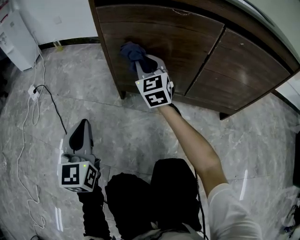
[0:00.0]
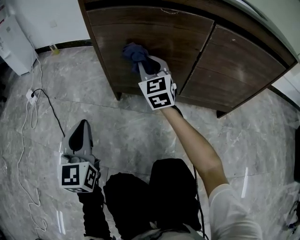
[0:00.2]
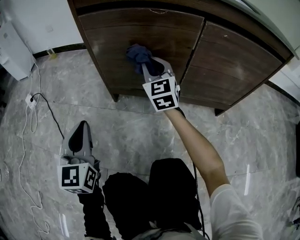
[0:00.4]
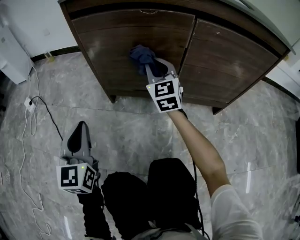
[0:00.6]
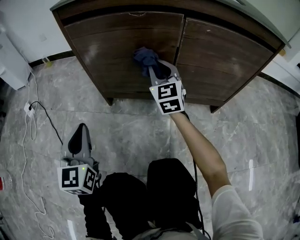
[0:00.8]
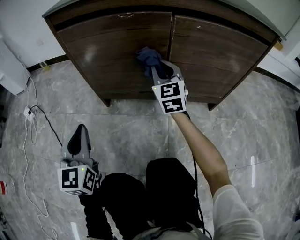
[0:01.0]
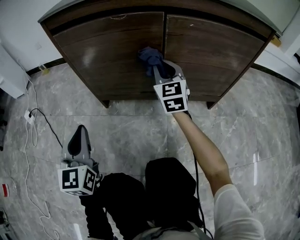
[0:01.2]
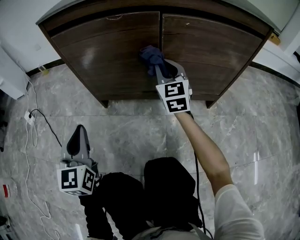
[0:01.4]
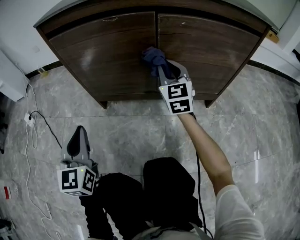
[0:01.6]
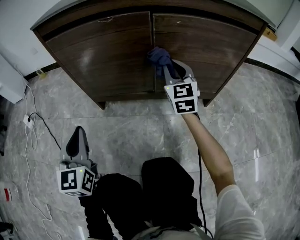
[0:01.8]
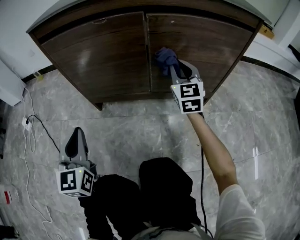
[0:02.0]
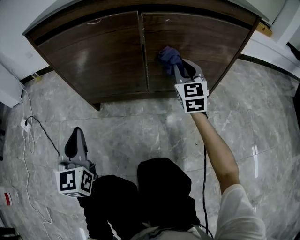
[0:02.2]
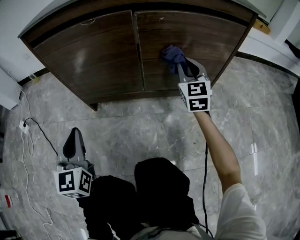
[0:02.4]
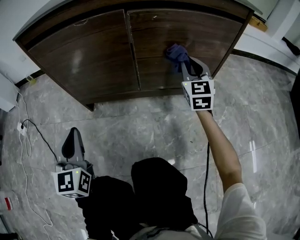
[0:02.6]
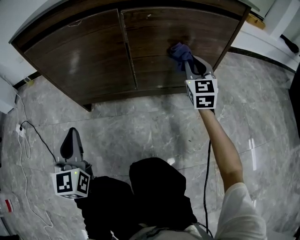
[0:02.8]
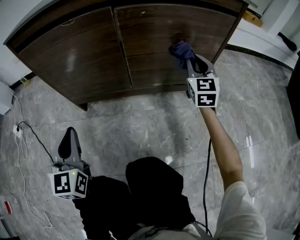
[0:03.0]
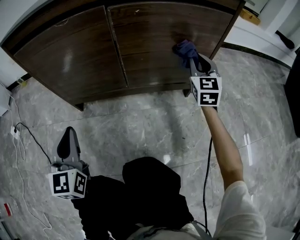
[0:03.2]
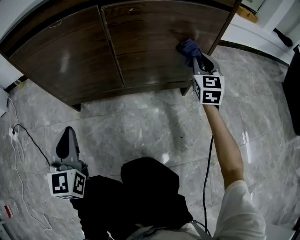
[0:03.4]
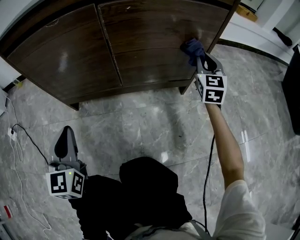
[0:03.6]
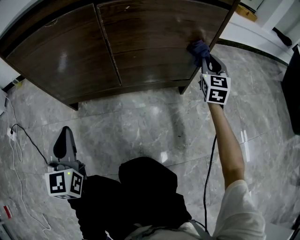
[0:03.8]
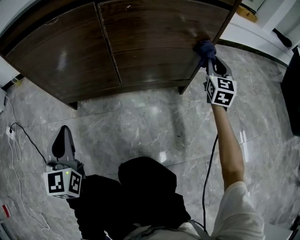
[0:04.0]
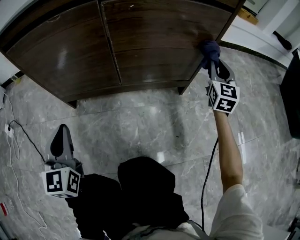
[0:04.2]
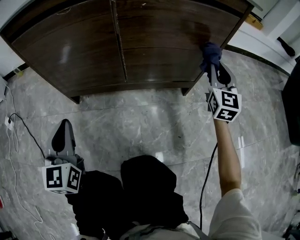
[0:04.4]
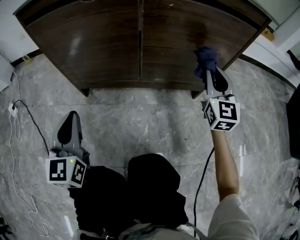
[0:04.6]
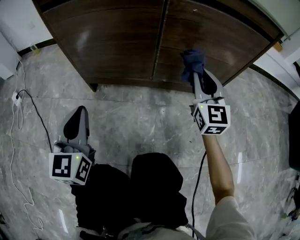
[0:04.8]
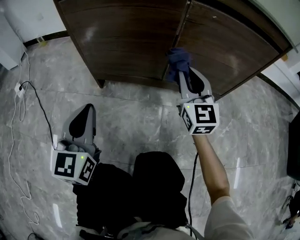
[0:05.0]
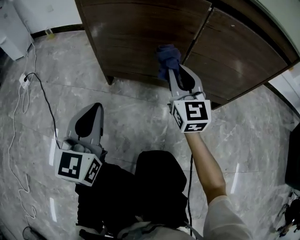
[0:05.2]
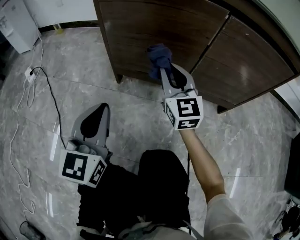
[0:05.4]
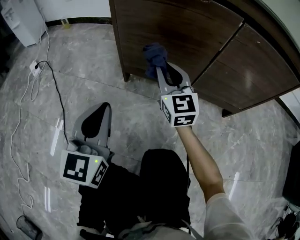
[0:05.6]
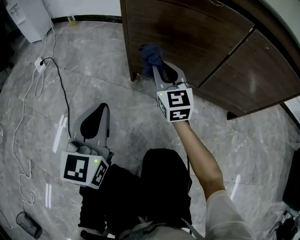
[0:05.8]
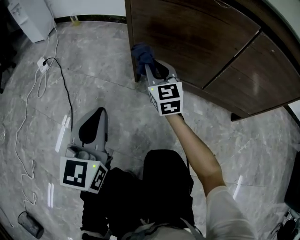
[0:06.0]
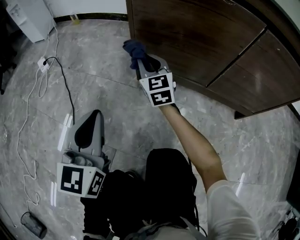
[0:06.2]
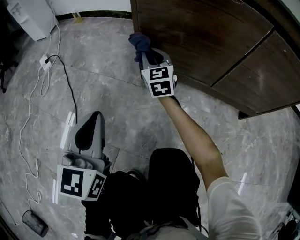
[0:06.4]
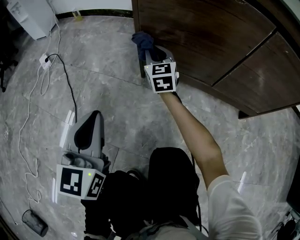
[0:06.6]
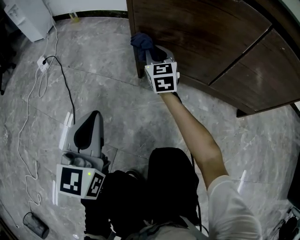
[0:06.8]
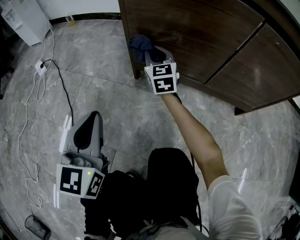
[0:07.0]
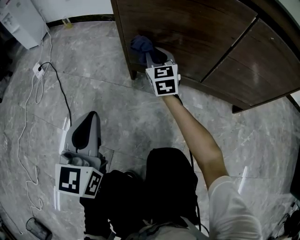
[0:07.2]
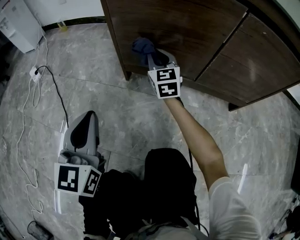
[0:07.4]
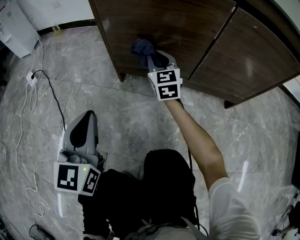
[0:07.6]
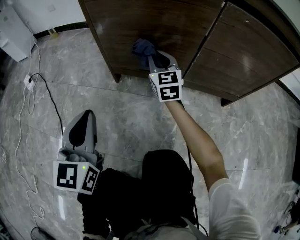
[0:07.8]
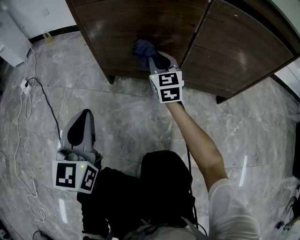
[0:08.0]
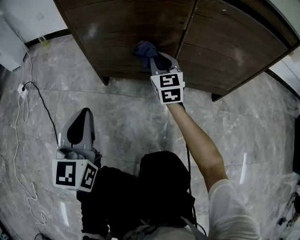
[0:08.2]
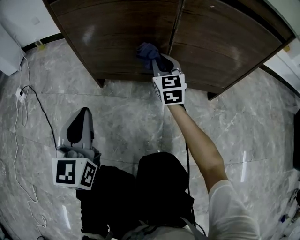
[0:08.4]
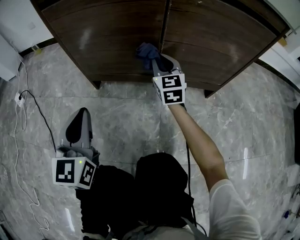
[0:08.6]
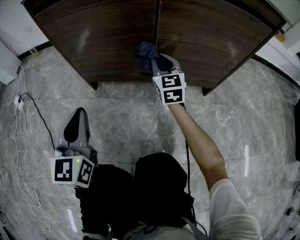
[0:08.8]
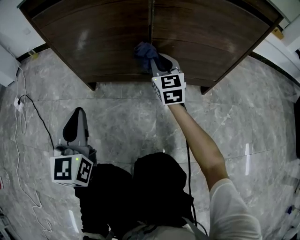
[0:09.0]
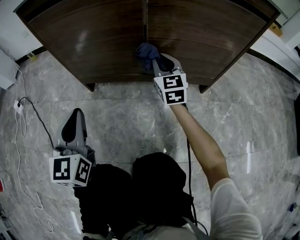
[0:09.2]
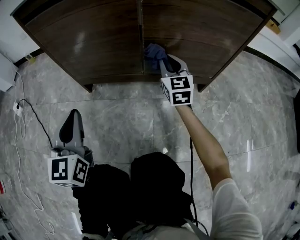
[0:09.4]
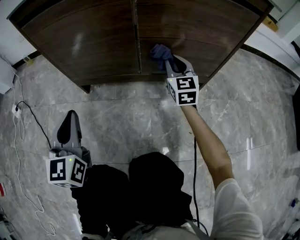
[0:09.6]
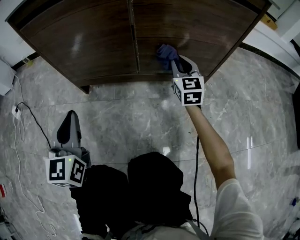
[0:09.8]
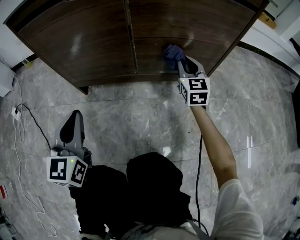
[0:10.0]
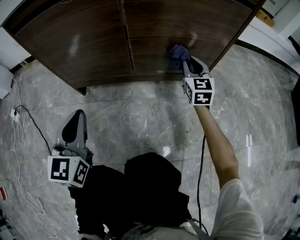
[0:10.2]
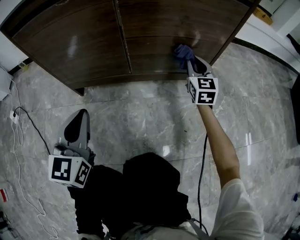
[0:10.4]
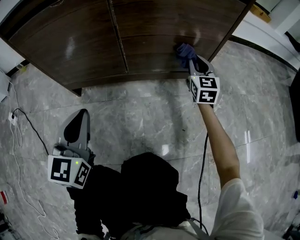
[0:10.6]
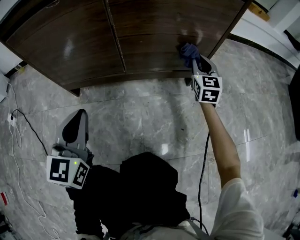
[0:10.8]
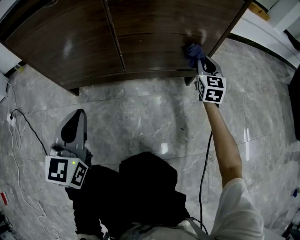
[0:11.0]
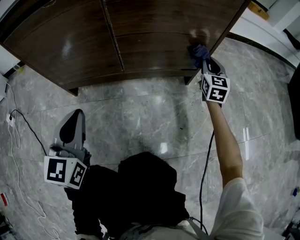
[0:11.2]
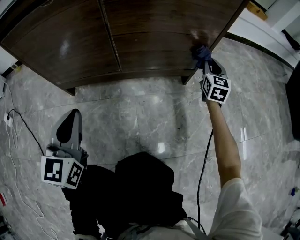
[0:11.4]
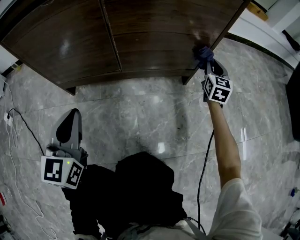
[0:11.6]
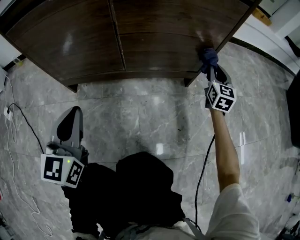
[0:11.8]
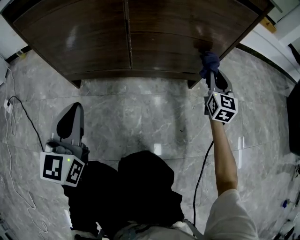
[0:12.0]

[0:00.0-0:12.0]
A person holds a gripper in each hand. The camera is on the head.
0:00.0 to 0:01.6: The right gripper travels to the right by approximately 25 cm; the left gripper goes about 10 cm to the right.
0:01.6 to 0:03.0: The right gripper goes roughly 20 cm to the right. Meanwhile the left gripper moves to the right, about 5 cm.
0:03.0 to 0:04.4: The right gripper moves to the right, roughly 10 cm.
0:04.4 to 0:06.0: The left gripper ends up roughly 15 cm from where it was, while the right gripper moves roughly 60 cm, and turns by approximately 50 degrees.
0:06.0 to 0:07.6: The right gripper goes approximately 10 cm to the right.
0:07.6 to 0:09.0: The right gripper heads to the right, covering about 20 cm; the left gripper goes about 10 cm to the right.
0:09.0 to 0:10.4: The right gripper is displaced to the right by some 25 cm. Meanwhile the left gripper goes roughly 10 cm to the right.
0:10.4 to 0:12.0: The right gripper moves to the right, roughly 10 cm.

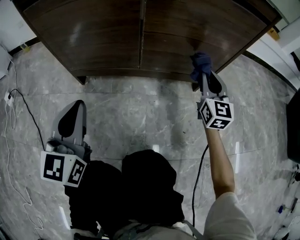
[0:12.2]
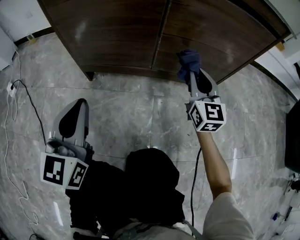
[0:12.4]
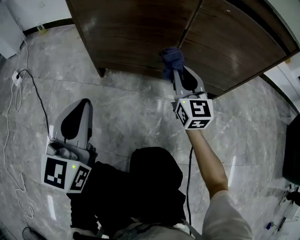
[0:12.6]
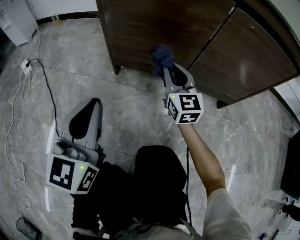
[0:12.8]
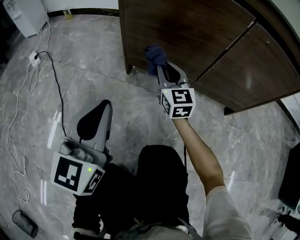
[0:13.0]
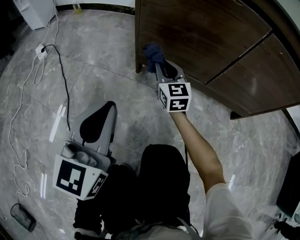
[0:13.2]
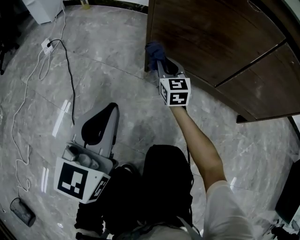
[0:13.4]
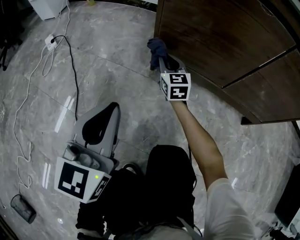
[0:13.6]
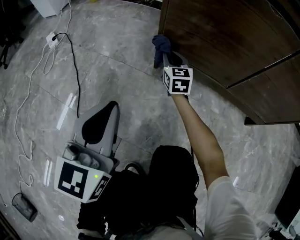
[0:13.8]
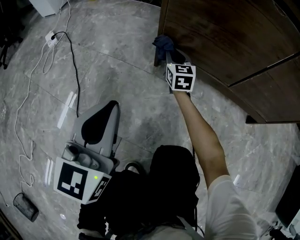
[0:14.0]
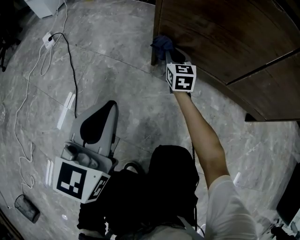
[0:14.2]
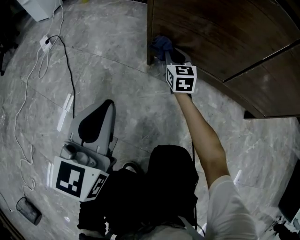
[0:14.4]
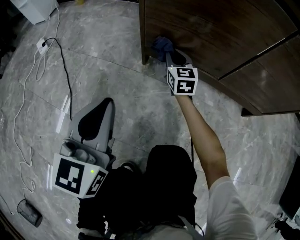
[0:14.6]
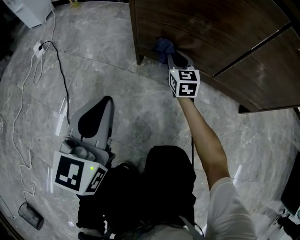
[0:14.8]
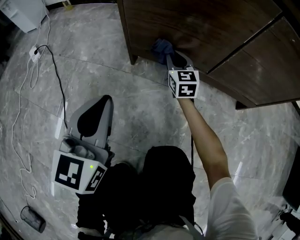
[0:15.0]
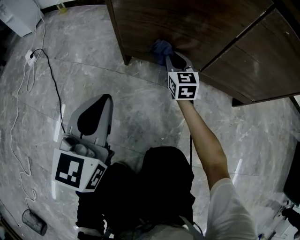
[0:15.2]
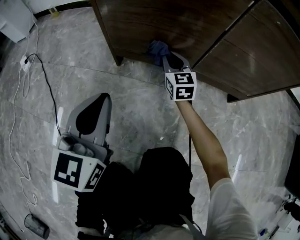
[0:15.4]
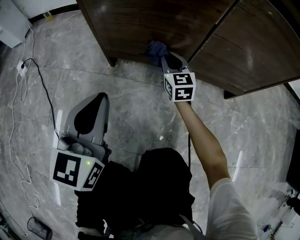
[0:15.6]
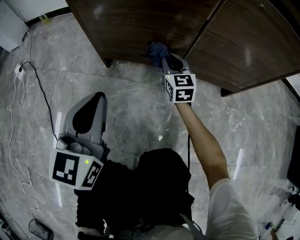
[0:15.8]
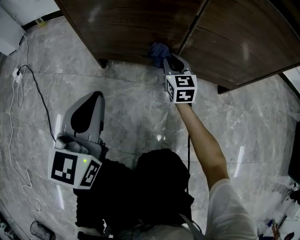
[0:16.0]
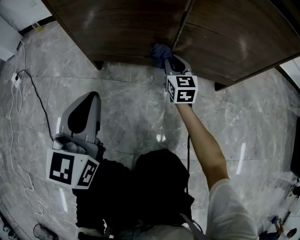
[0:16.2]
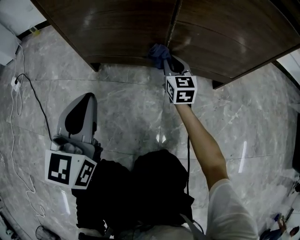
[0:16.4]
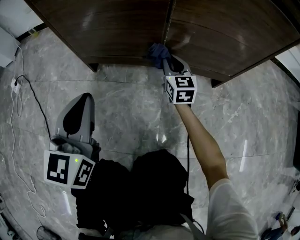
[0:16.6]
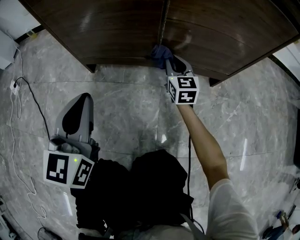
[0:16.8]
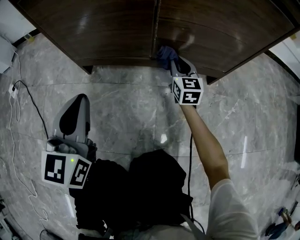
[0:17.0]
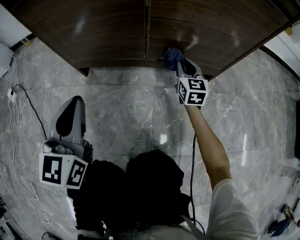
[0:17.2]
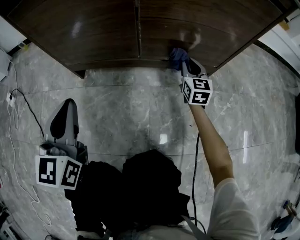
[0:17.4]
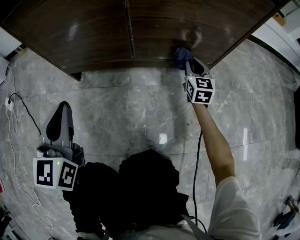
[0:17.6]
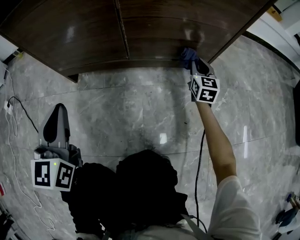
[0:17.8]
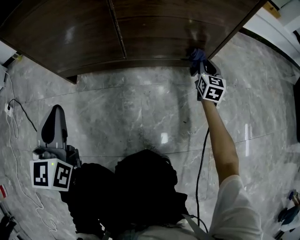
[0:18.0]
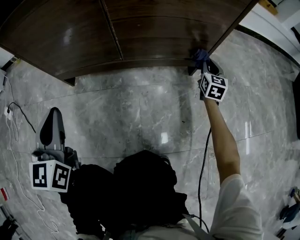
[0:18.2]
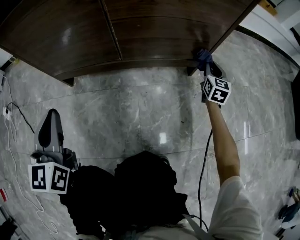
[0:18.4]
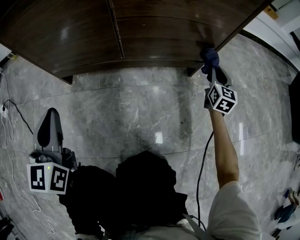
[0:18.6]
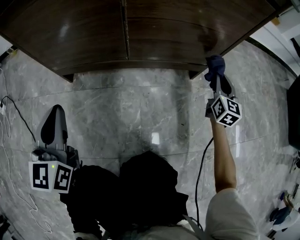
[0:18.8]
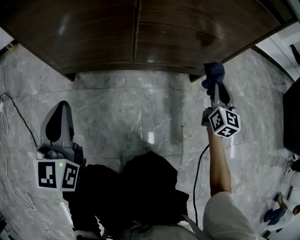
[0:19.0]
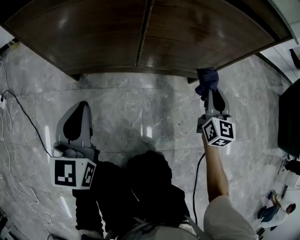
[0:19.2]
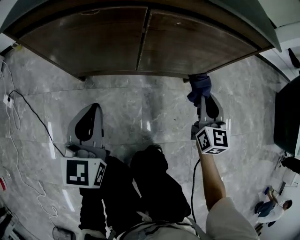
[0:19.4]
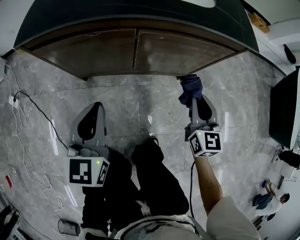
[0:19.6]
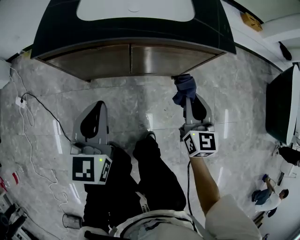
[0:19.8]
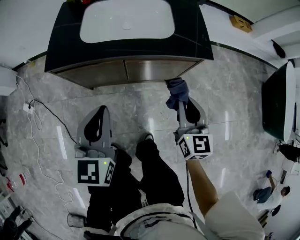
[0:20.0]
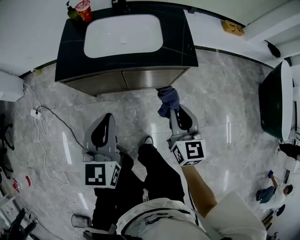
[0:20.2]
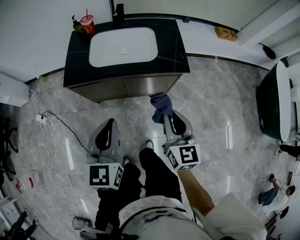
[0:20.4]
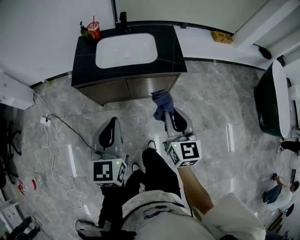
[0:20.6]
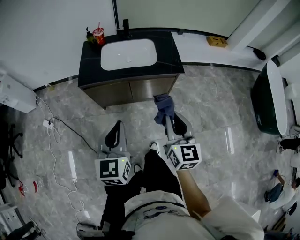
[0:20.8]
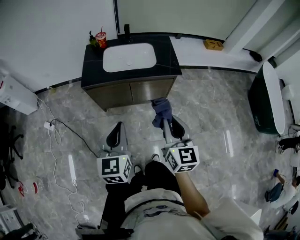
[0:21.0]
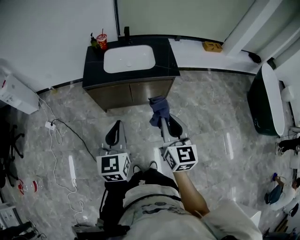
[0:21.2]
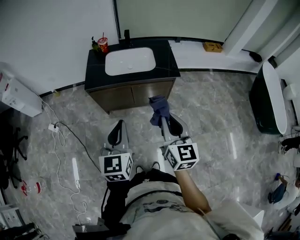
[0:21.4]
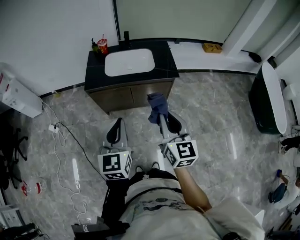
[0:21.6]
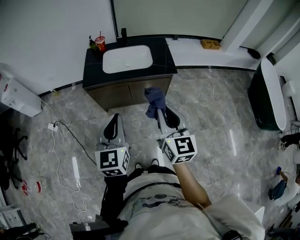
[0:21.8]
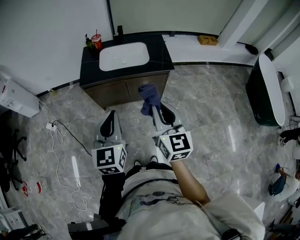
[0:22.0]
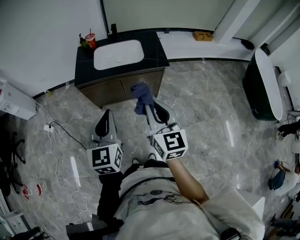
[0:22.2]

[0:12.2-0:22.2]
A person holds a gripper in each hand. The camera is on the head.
0:12.2 to 0:13.6: The left gripper heads to the left, covering about 20 cm. The right gripper goes some 50 cm to the left, and rotates about 40 degrees.
0:13.6 to 0:15.0: The left gripper is displaced to the right by approximately 5 cm, while the right gripper travels to the right by some 15 cm.
0:15.0 to 0:16.4: The right gripper is displaced to the right by some 20 cm. Meanwhile the left gripper shifts about 10 cm to the right.
0:16.4 to 0:18.0: The right gripper heads to the right, covering about 30 cm, and swivels about 30 degrees.
0:18.0 to 0:19.4: The left gripper moves upward, some 10 cm; the right gripper travels upward, backward and to the left by roughly 30 cm.
0:19.4 to 0:20.8: The grippers both shift upward by roughly 50 cm.
0:20.8 to 0:22.2: The left gripper goes roughly 5 cm upward, while the right gripper heads upward and backward, covering some 10 cm.

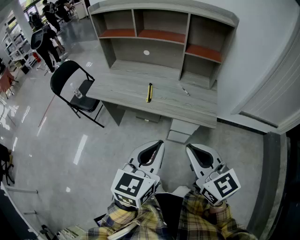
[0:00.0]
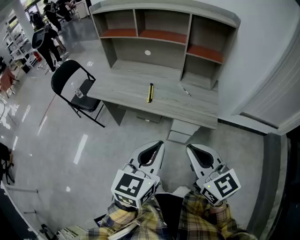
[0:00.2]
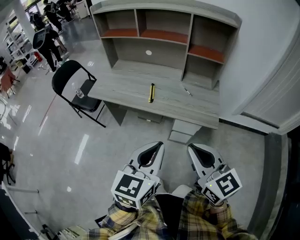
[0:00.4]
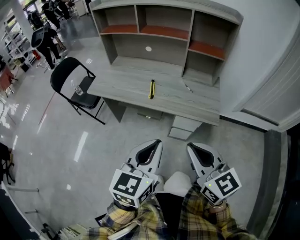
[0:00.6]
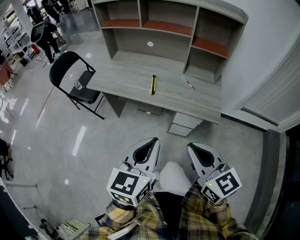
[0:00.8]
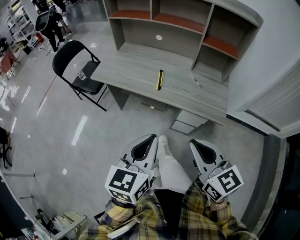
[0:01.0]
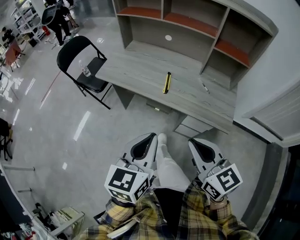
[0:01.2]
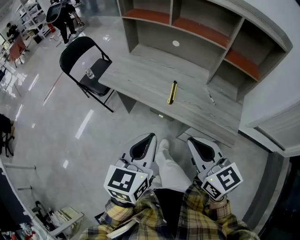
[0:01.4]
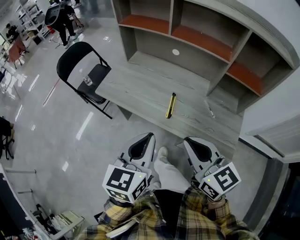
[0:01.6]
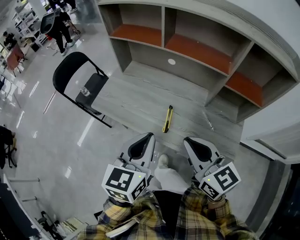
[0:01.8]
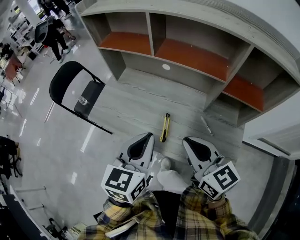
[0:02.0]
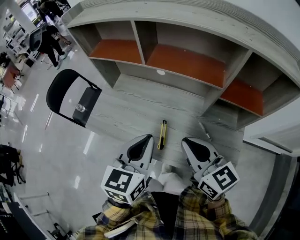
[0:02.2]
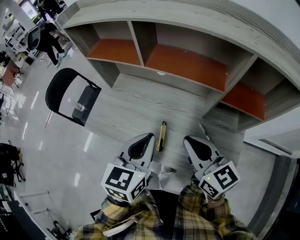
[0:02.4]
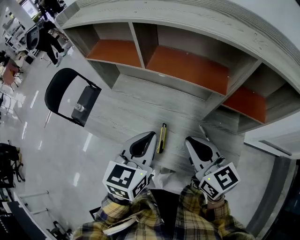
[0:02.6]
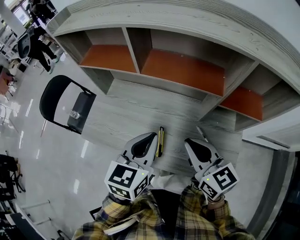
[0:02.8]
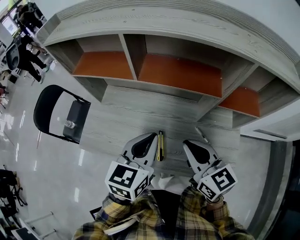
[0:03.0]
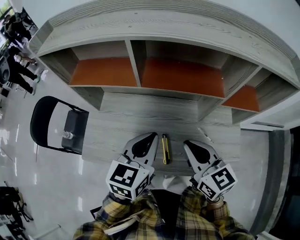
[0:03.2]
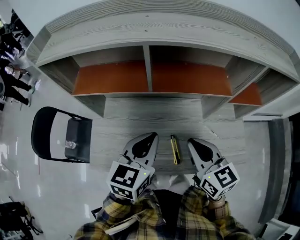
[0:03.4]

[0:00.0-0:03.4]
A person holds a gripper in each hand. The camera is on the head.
0:00.0 to 0:01.6: The left gripper heads forward and to the left, covering about 25 cm; the right gripper heads forward, covering some 25 cm.
0:01.6 to 0:03.4: The left gripper moves roughly 30 cm, and changes its angle by about 30 degrees, while the right gripper ends up roughly 30 cm from where it was, and changes its angle by roughly 30 degrees.
